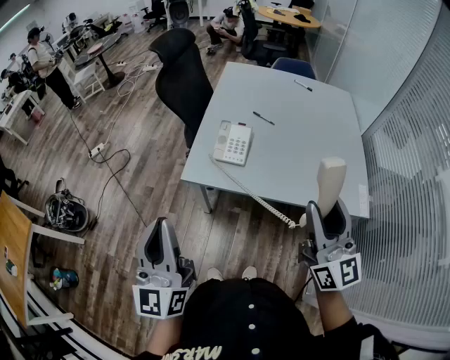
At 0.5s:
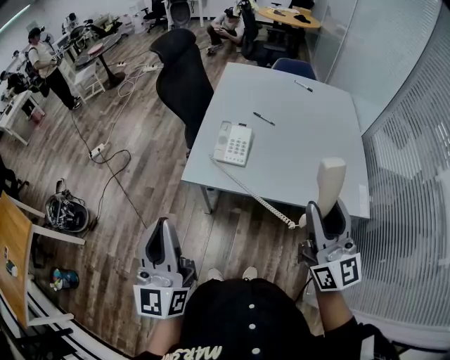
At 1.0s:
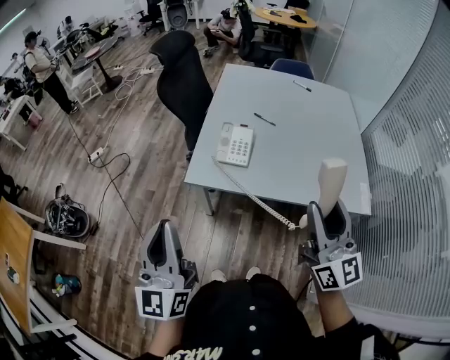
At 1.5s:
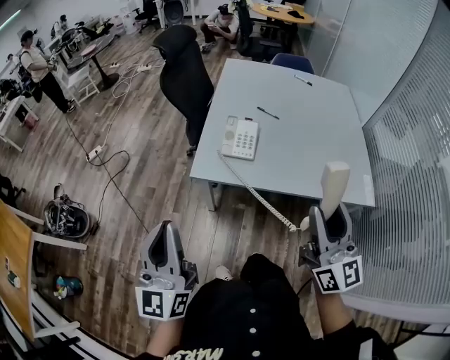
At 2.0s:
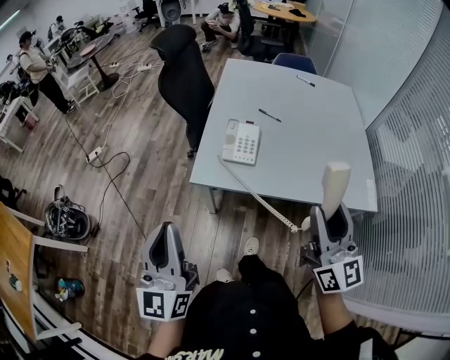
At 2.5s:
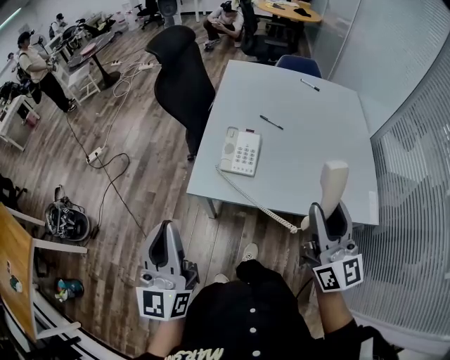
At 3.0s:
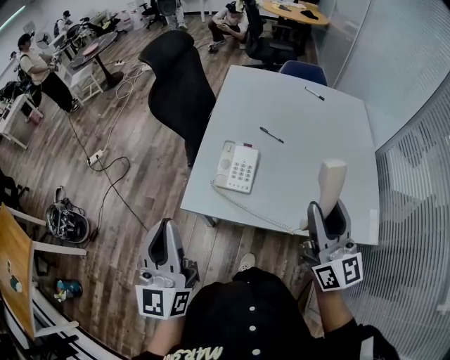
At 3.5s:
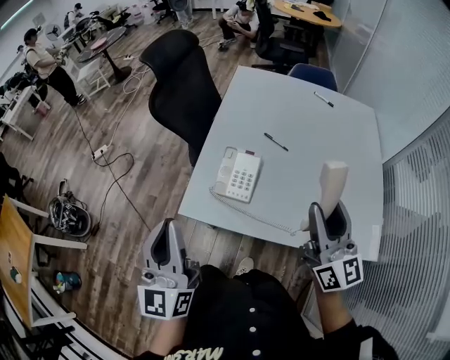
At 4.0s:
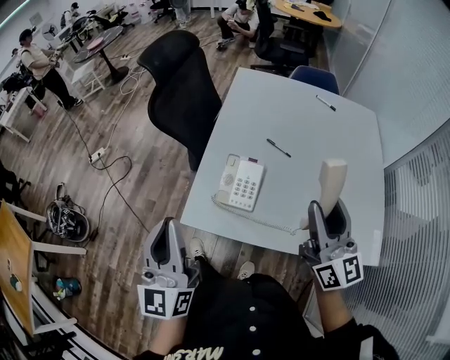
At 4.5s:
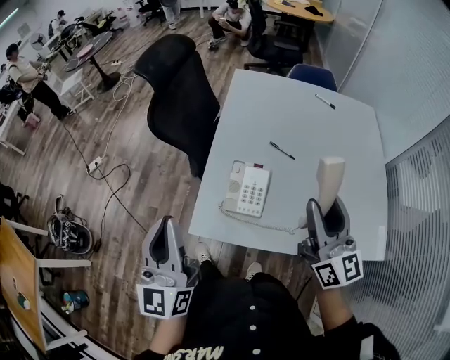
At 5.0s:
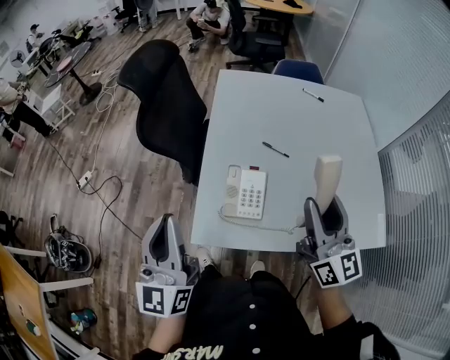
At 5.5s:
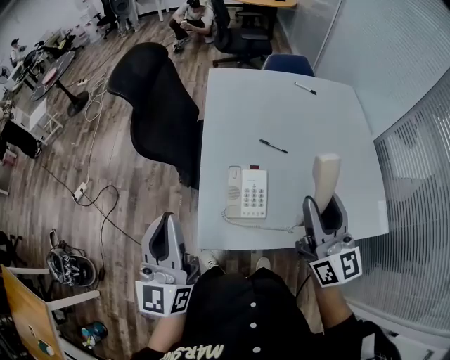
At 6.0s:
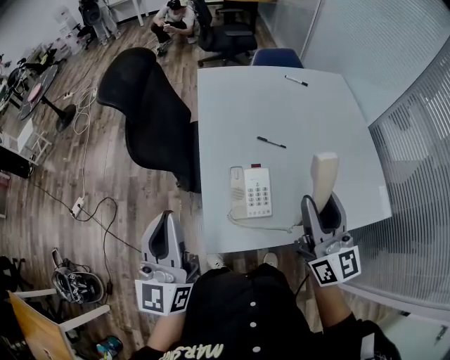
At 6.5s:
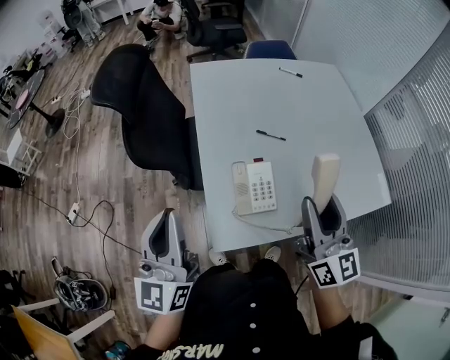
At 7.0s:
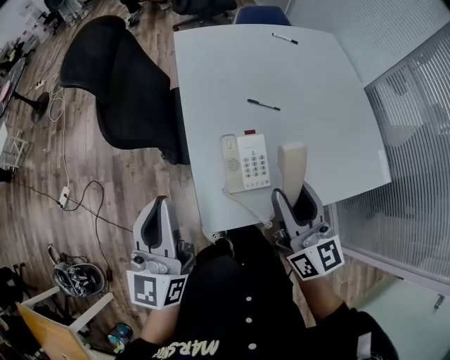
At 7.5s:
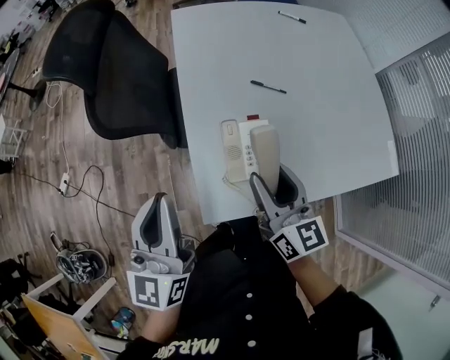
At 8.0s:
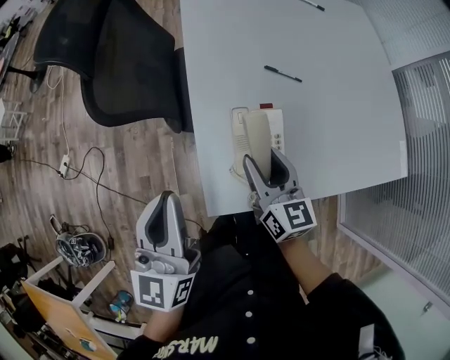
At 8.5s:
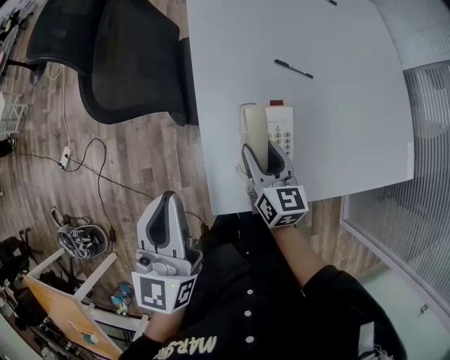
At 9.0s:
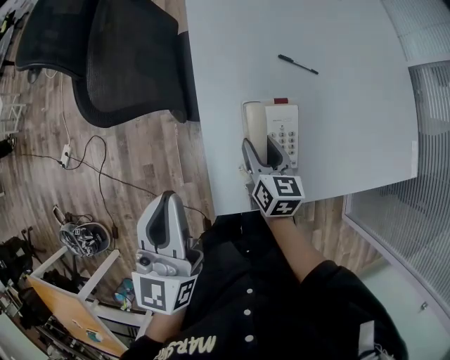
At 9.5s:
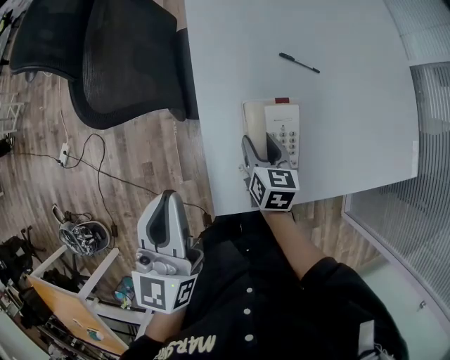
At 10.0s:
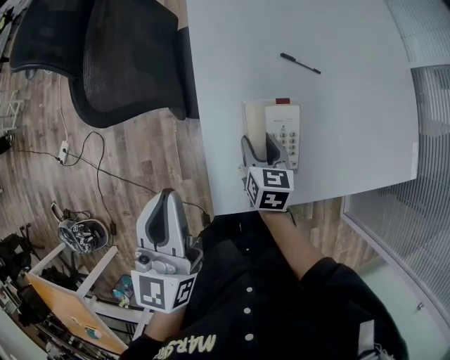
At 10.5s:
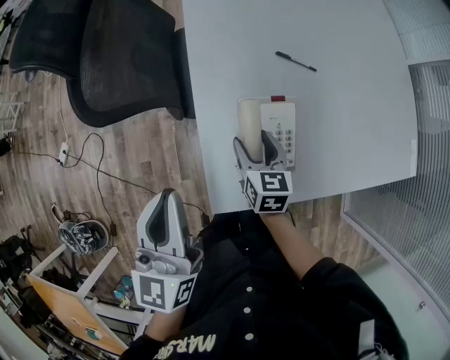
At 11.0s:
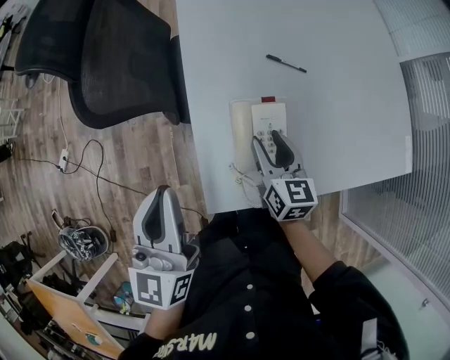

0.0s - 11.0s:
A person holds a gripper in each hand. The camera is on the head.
0.0s - 2.0s: The left gripper shifts by roughly 5 cm.
2.0s - 3.5s: The left gripper heads forward and to the right, covering about 15 cm, while the right gripper heads forward, covering roughly 20 cm.
3.5s - 5.5s: The right gripper heads to the left and forward, covering roughly 10 cm. The left gripper is displaced forward and to the left by about 20 cm.
5.5s - 7.5s: The left gripper goes approximately 10 cm downward and forward. Meanwhile the right gripper moves downward and to the left, about 20 cm.
7.5s - 9.0s: The right gripper goes some 20 cm downward, and rotates about 20 degrees; the left gripper heads downward, covering some 5 cm.
9.0s - 11.0s: The right gripper ends up approximately 5 cm from where it was.

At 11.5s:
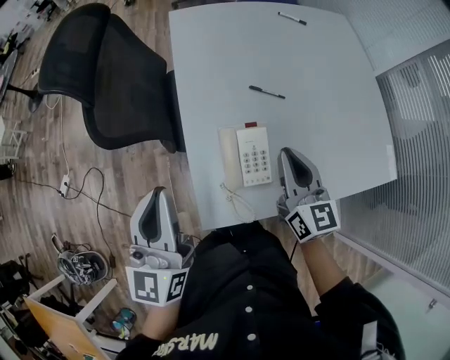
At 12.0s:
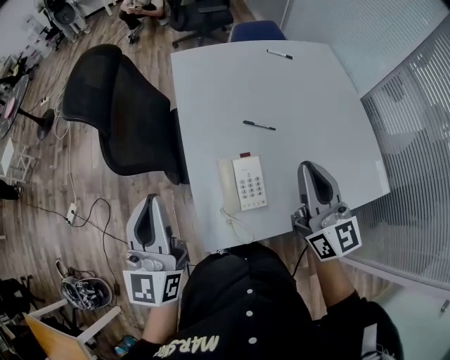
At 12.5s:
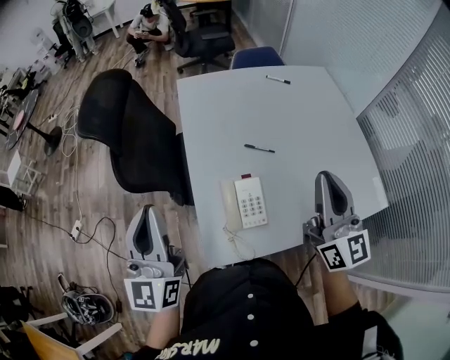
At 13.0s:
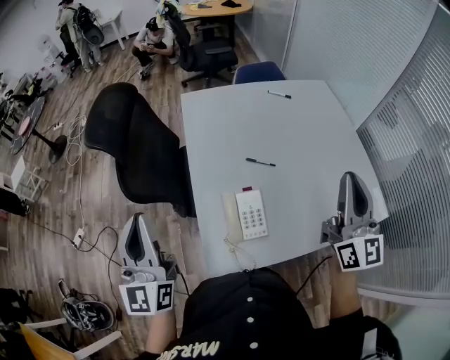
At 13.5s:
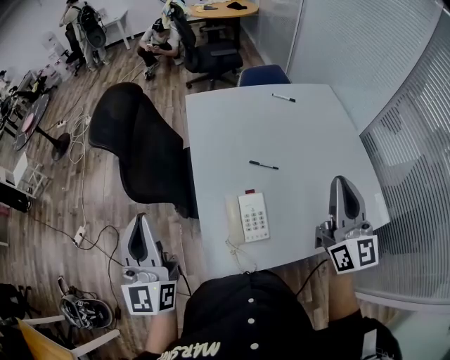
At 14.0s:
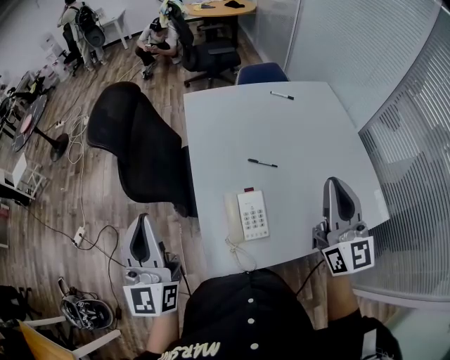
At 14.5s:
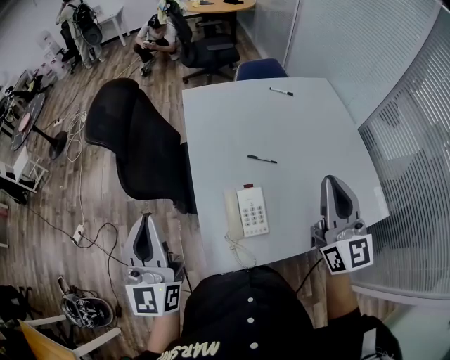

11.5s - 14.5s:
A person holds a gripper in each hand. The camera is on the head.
11.5s - 13.0s: The right gripper goes some 25 cm upward and to the right, and turns by roughly 30 degrees. Meanwhile the left gripper moves upward, some 10 cm.
13.0s - 14.5s: The right gripper ends up approximately 5 cm from where it was.

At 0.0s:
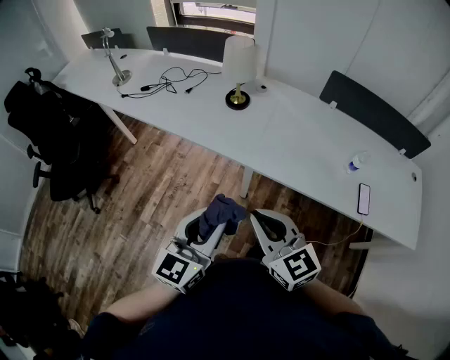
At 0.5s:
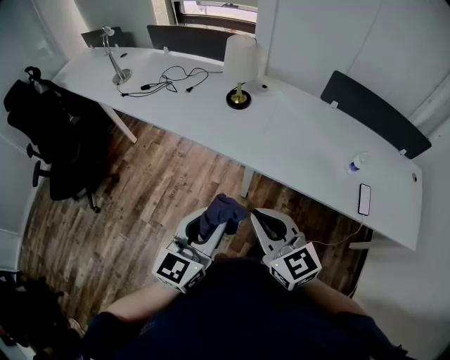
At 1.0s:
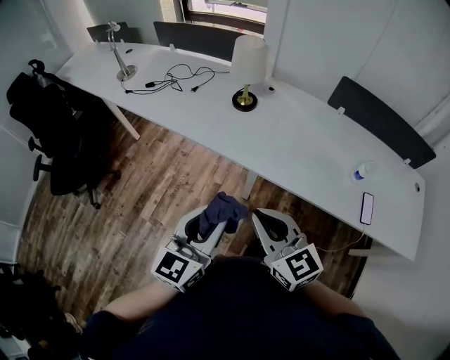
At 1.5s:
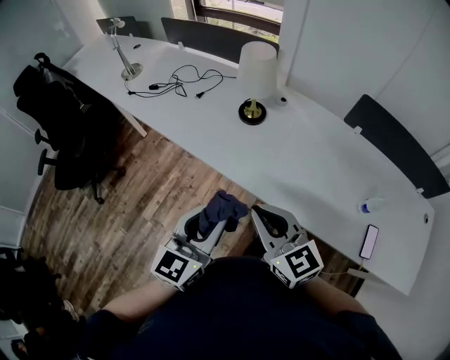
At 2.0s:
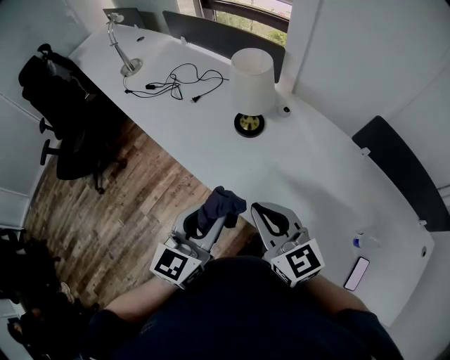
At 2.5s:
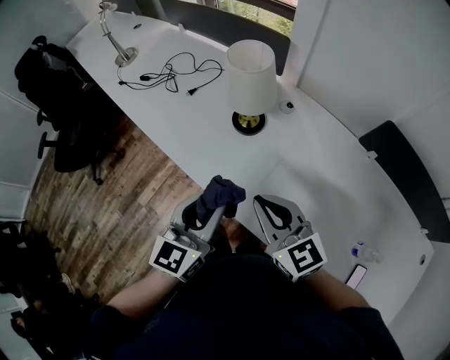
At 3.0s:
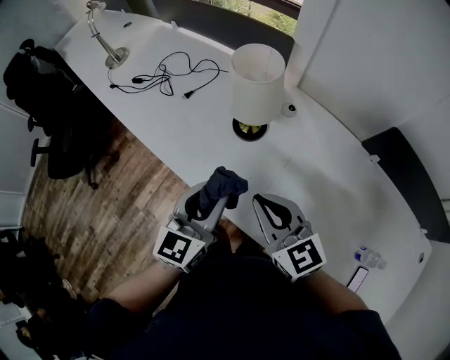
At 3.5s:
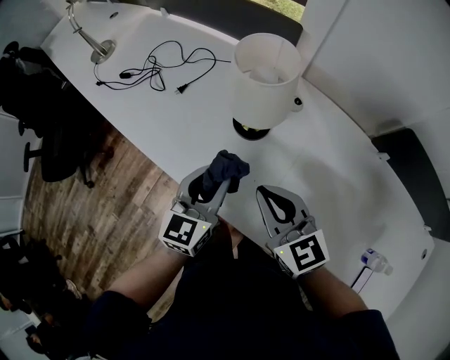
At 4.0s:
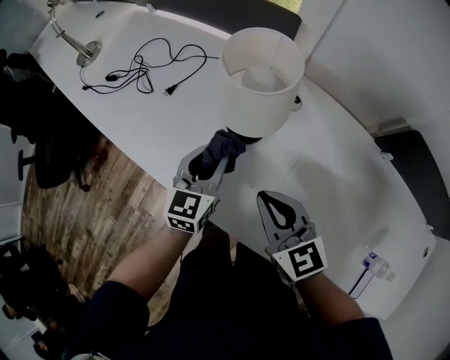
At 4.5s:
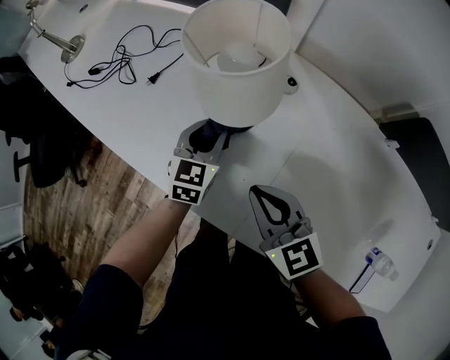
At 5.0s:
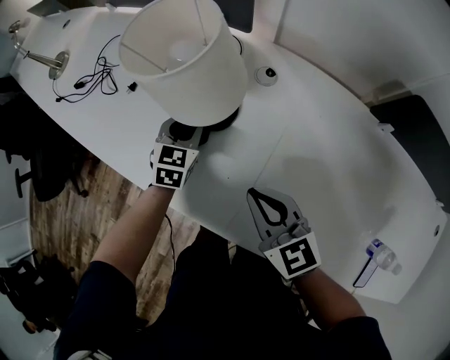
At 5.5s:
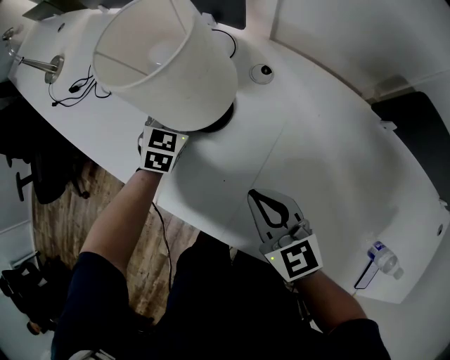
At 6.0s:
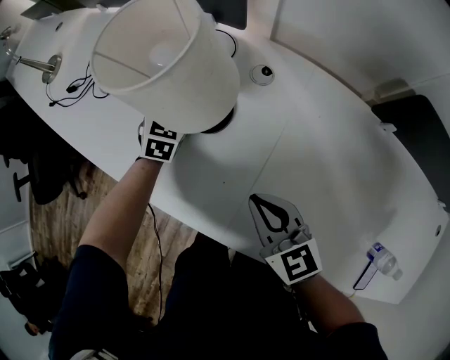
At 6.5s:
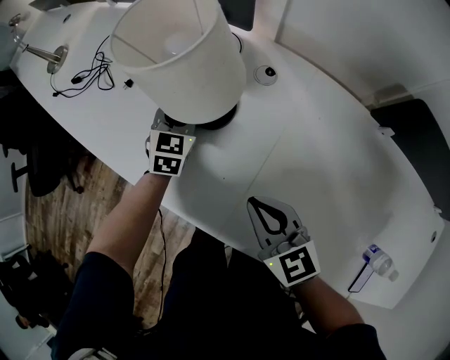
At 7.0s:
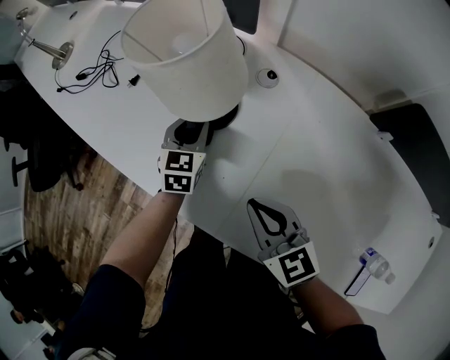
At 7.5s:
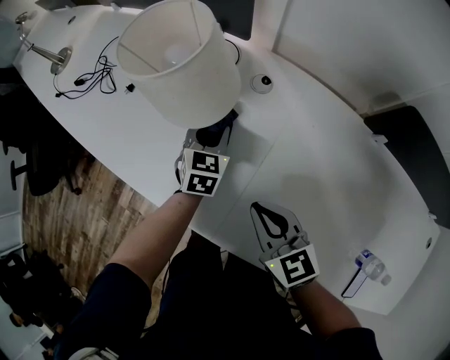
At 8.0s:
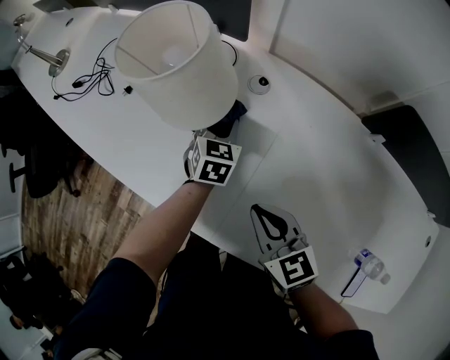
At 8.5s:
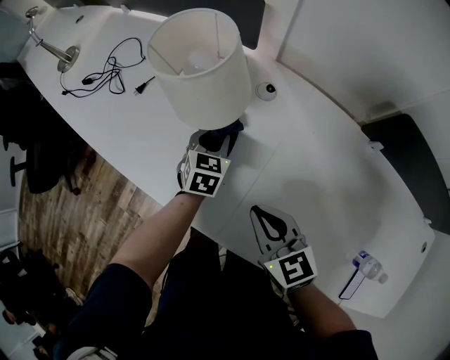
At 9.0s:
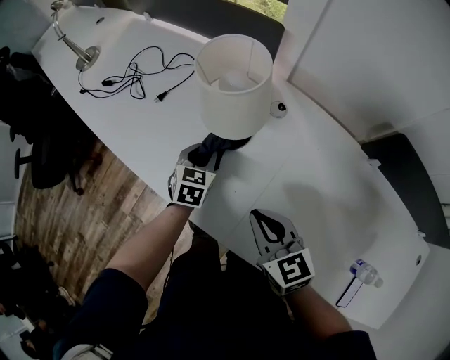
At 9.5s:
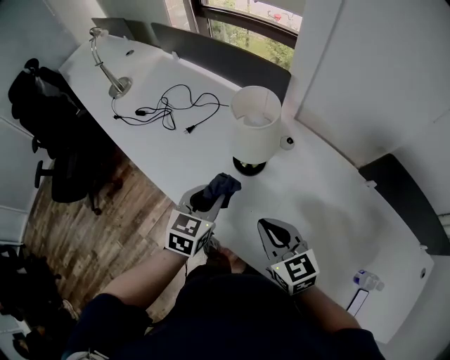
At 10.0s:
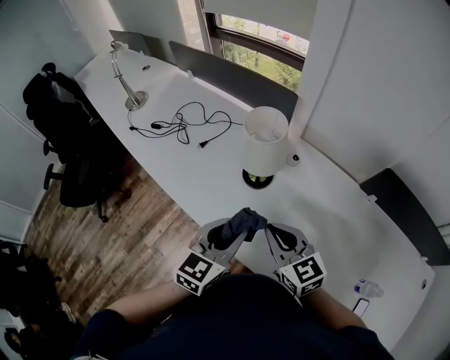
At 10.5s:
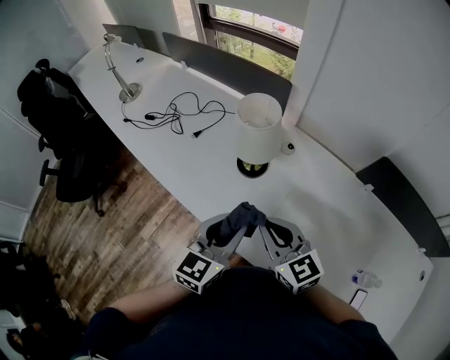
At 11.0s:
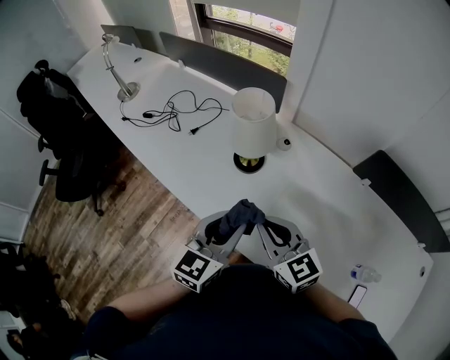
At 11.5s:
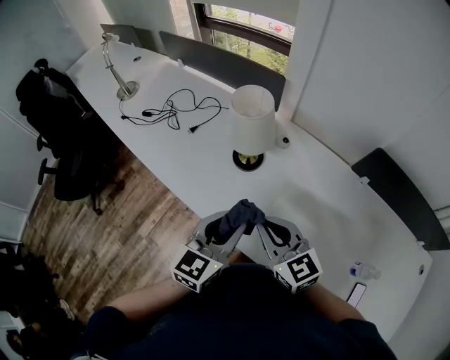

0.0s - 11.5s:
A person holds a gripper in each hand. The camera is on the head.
0.0s - 2.0s: Both grippers move forward, roughly 25 cm.
2.0s - 4.0s: The left gripper is displaced forward and downward by approximately 35 cm; the right gripper heads forward and downward, covering some 20 cm.
4.0s - 6.0s: The right gripper goes roughly 10 cm downward and to the right. Meanwhile the left gripper is displaced forward and downward by about 20 cm, and turns by about 30 degrees.
6.0s - 7.5s: The left gripper moves backward and to the right, about 10 cm.
7.5s - 9.5s: The right gripper shifts some 15 cm upward and to the left, while the left gripper is displaced upward, to the left and backward by roughly 25 cm.
9.5s - 11.5s: The left gripper shifts approximately 15 cm backward, upward and to the right. The right gripper travels upward by about 5 cm.

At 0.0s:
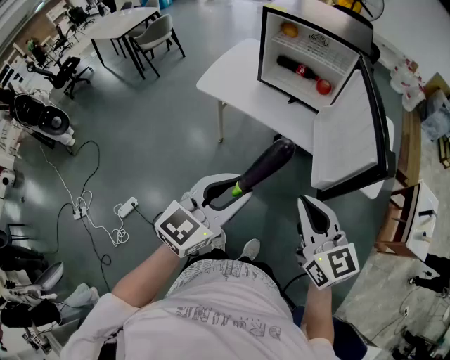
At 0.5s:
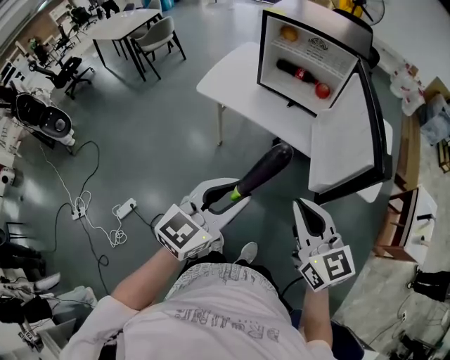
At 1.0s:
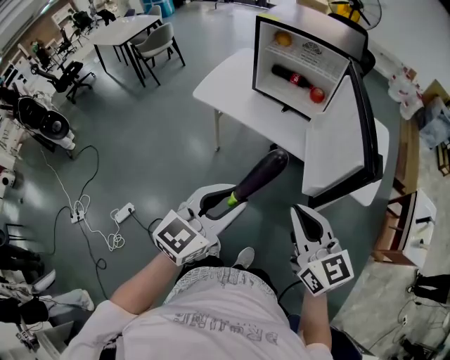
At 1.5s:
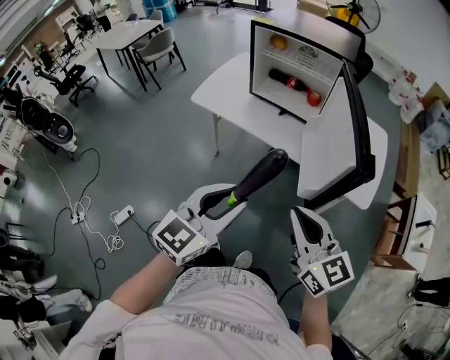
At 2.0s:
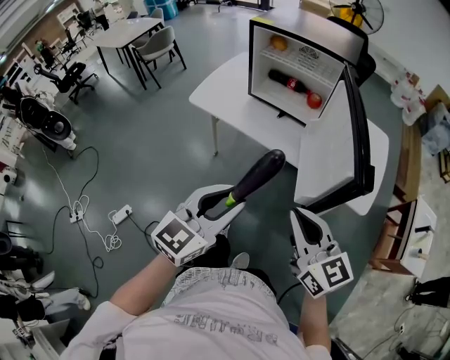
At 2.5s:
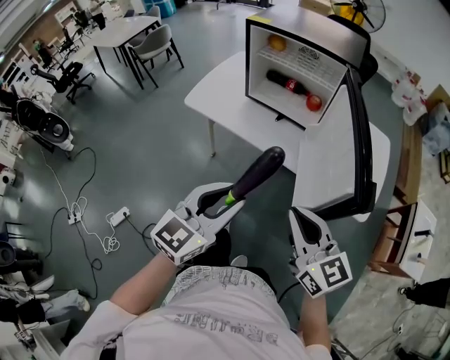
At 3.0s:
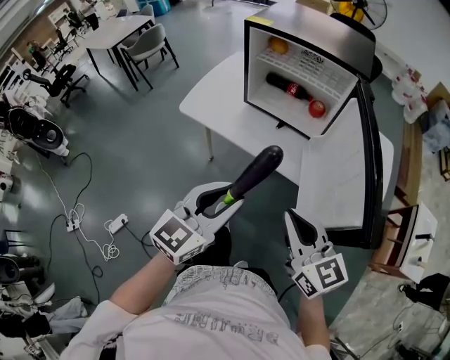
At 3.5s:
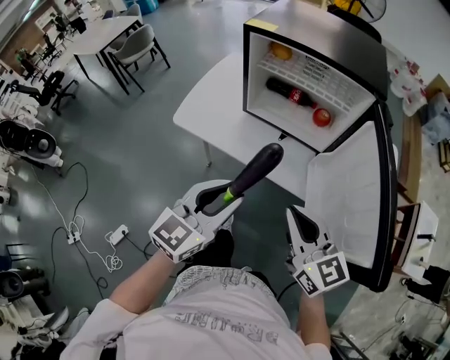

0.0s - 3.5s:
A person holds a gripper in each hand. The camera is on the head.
0.0s - 2.0s: Both grippers travel together to the right, approximately 5 cm.
2.0s - 3.5s: The two grippers go roughly 20 cm forward.
